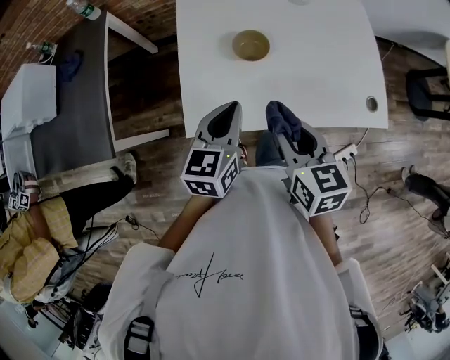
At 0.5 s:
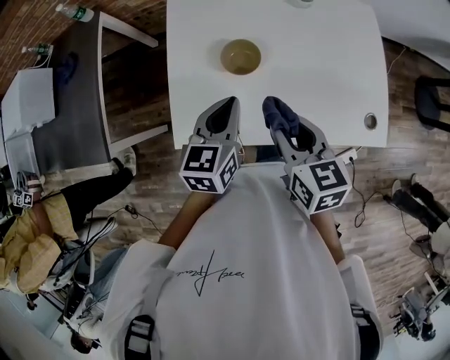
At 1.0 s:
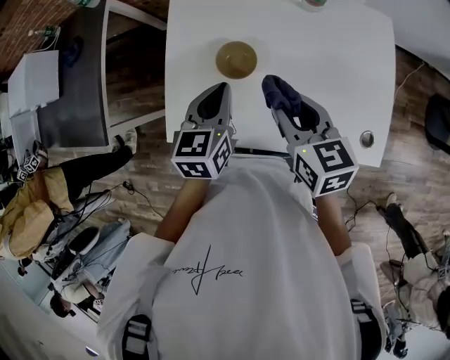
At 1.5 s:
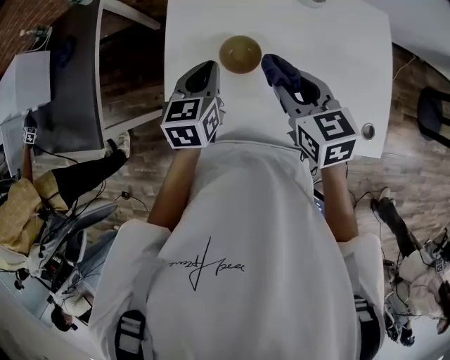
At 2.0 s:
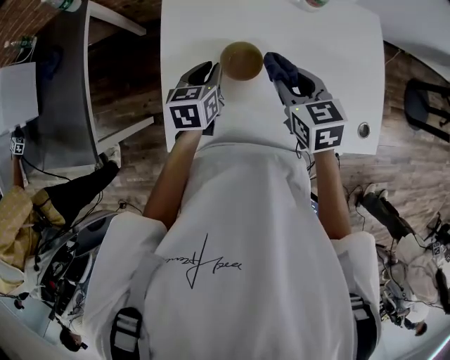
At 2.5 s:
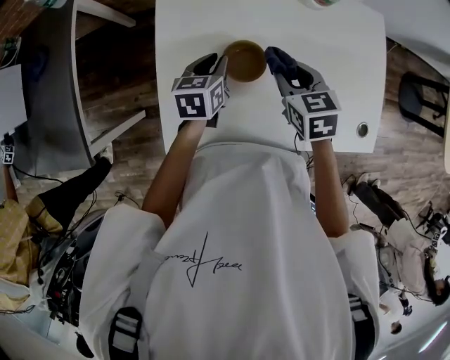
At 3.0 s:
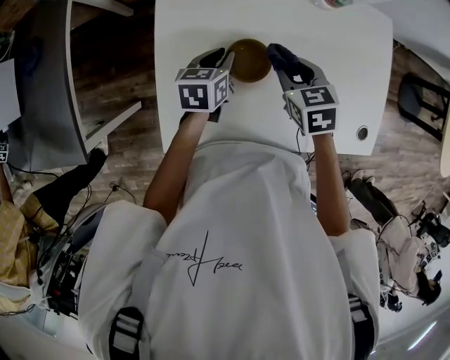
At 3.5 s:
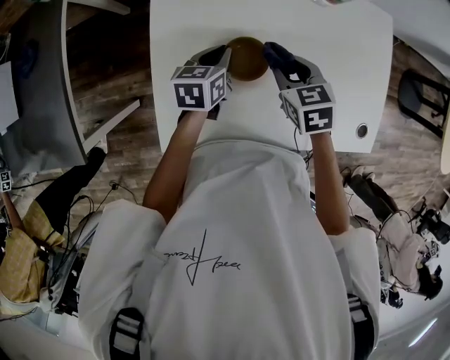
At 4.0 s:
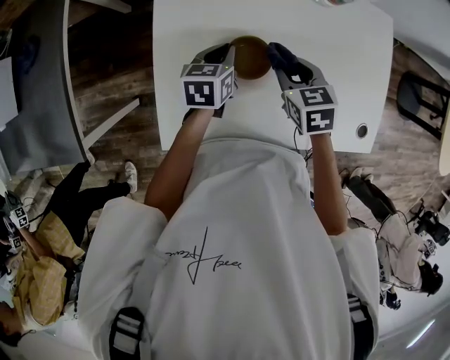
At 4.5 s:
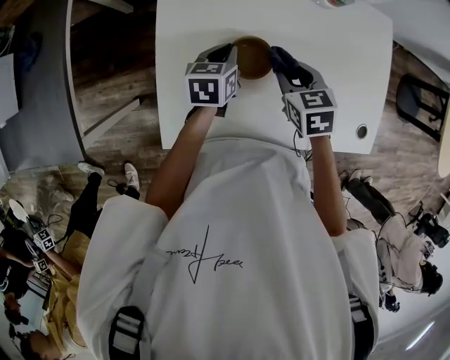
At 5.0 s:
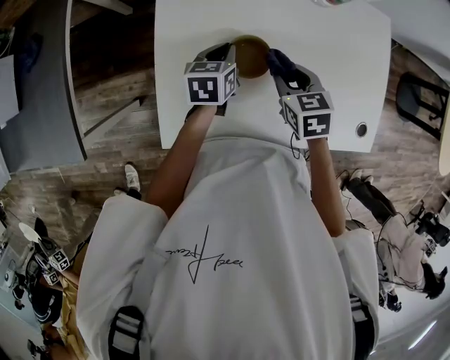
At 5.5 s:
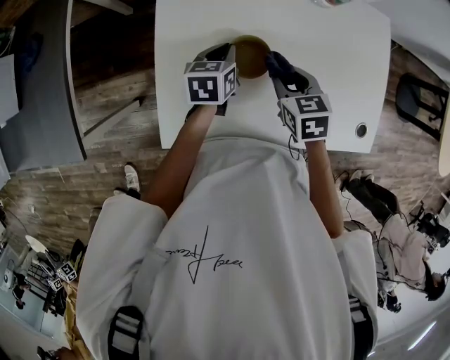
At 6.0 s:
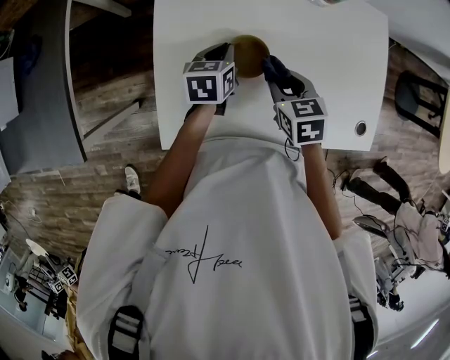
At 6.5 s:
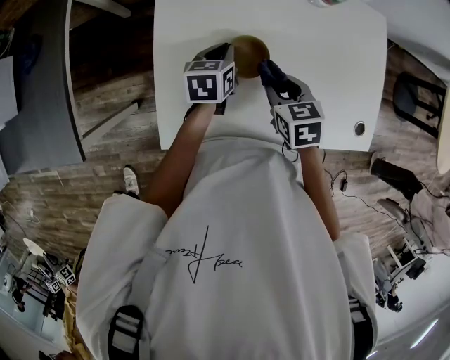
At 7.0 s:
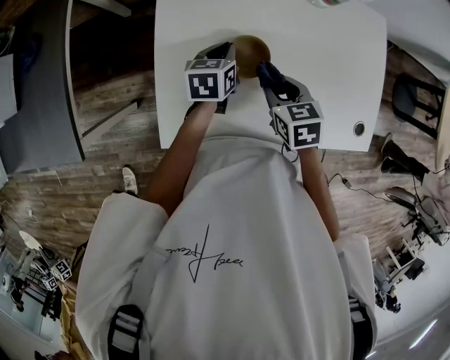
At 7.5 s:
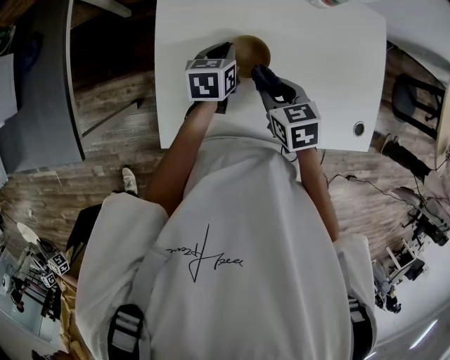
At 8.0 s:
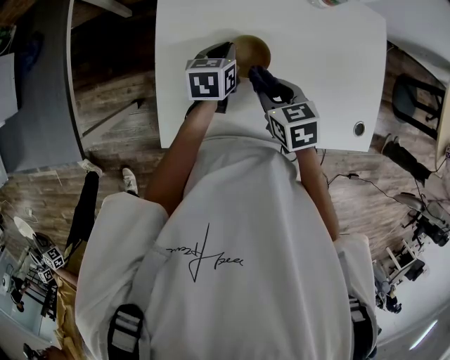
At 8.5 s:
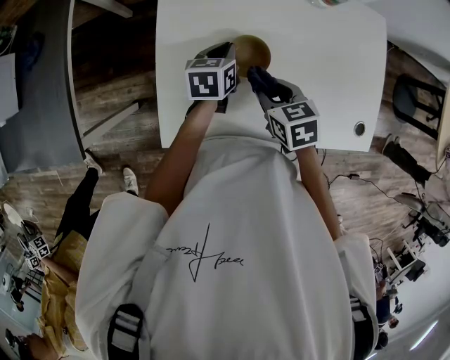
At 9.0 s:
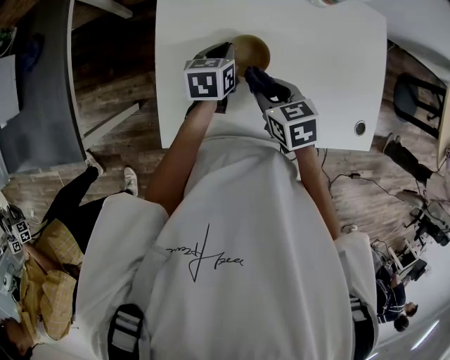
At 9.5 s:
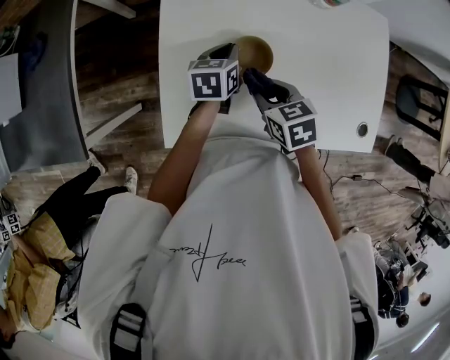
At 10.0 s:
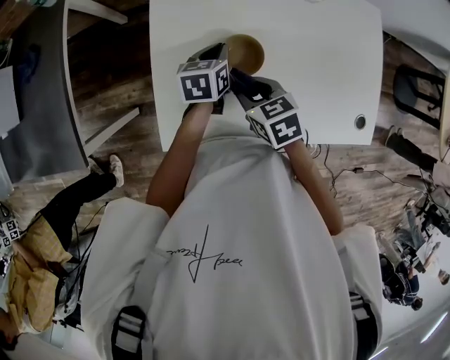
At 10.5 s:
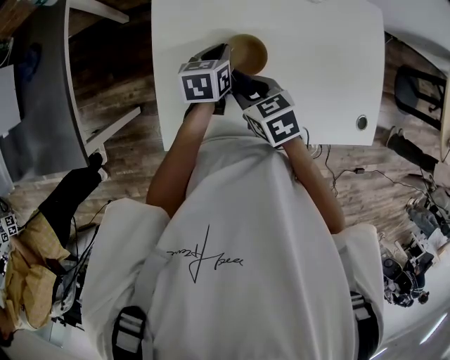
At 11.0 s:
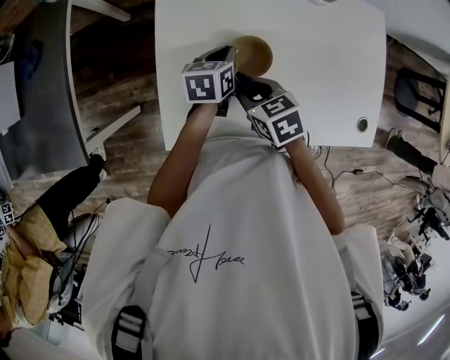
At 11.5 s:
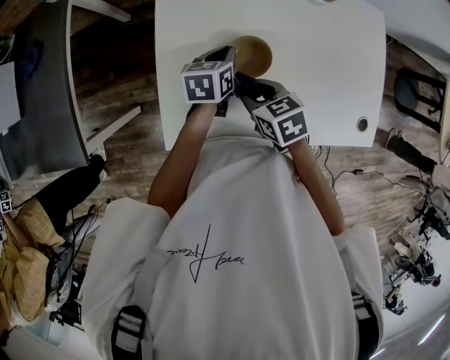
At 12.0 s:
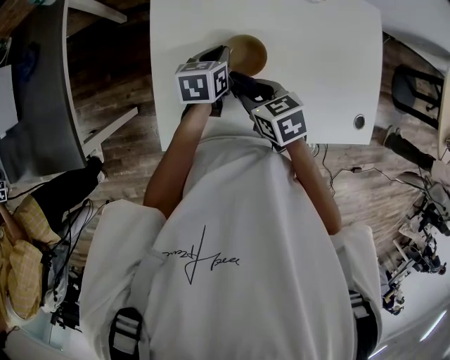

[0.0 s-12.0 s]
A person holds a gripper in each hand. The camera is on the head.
0.0 to 2.0 s: The right gripper moves forward, some 20 cm; the left gripper is displaced forward and downward by about 20 cm.
2.0 to 4.0 s: Both grippers travel together downward, roughly 5 cm.
4.0 to 6.0 s: The grippers make only small movements.
6.0 to 8.0 s: The grippers stay close to where they were, moving slightly.
8.0 to 10.0 s: The right gripper goes roughly 5 cm to the left.
10.0 to 12.0 s: The grippers stay close to where they were, moving slightly.

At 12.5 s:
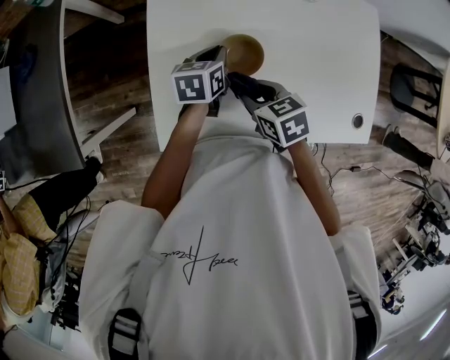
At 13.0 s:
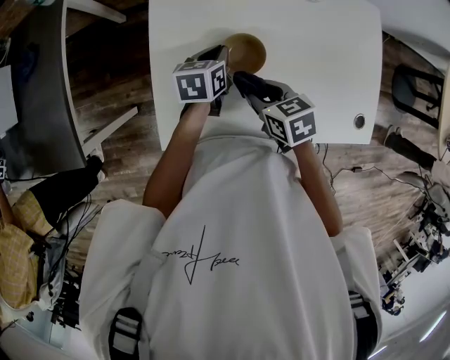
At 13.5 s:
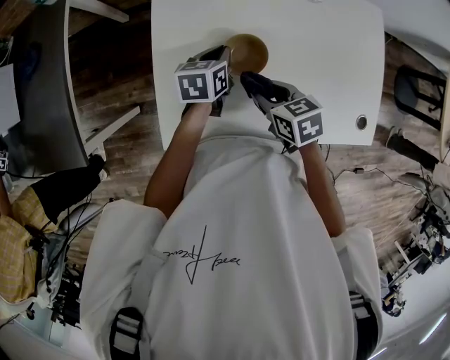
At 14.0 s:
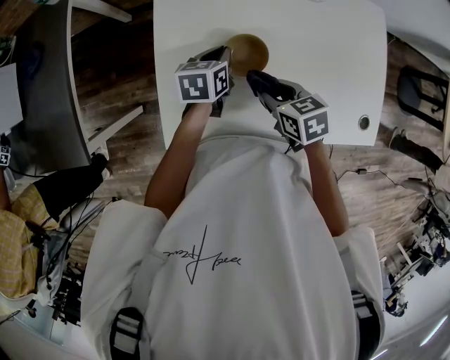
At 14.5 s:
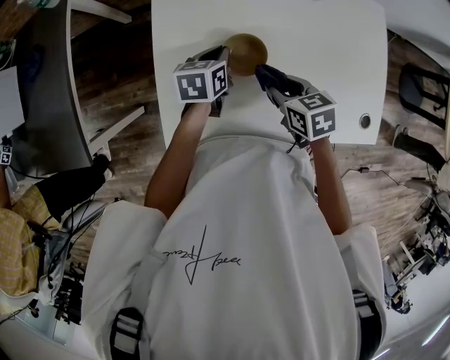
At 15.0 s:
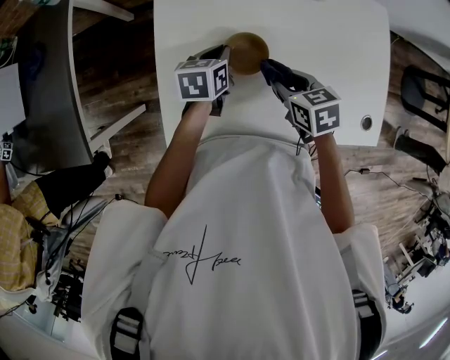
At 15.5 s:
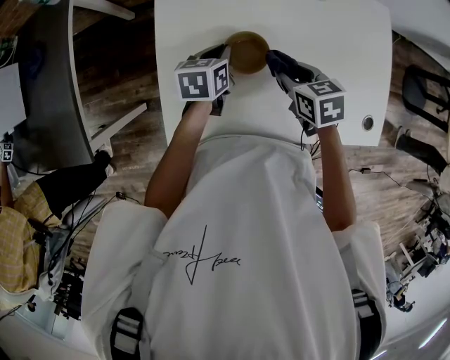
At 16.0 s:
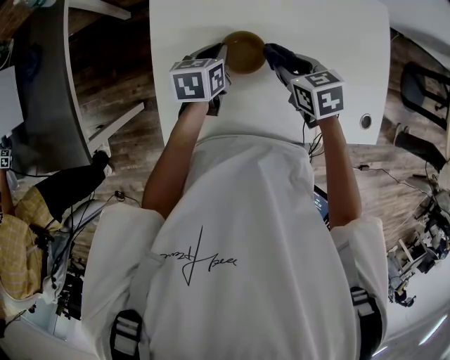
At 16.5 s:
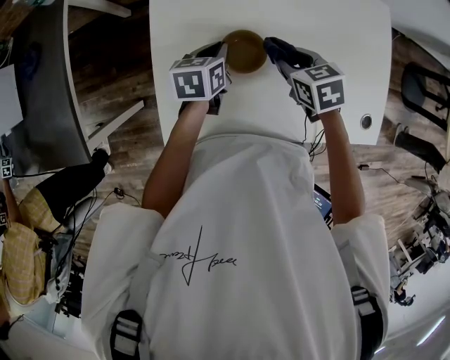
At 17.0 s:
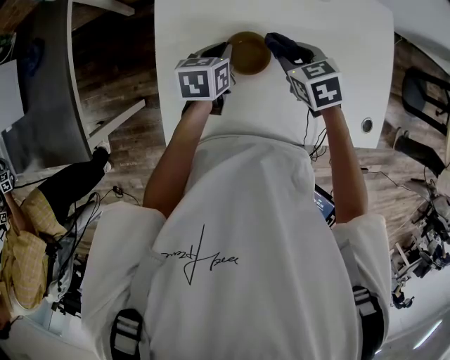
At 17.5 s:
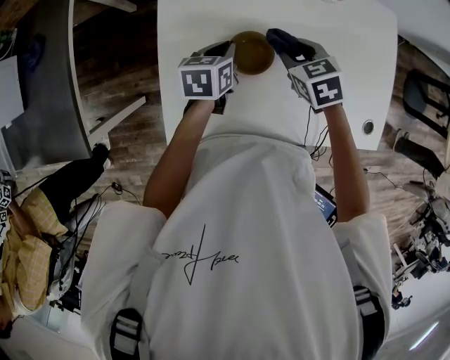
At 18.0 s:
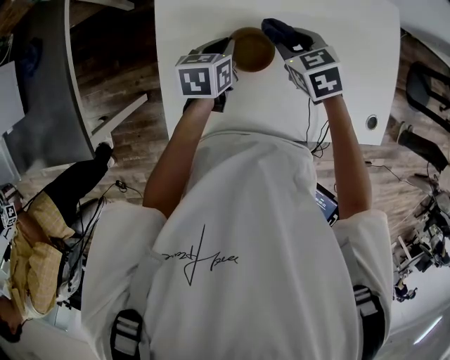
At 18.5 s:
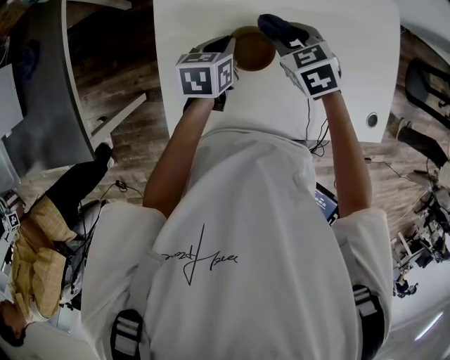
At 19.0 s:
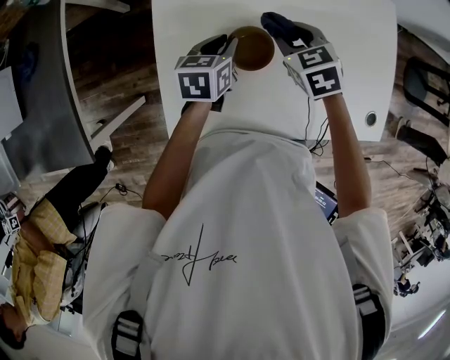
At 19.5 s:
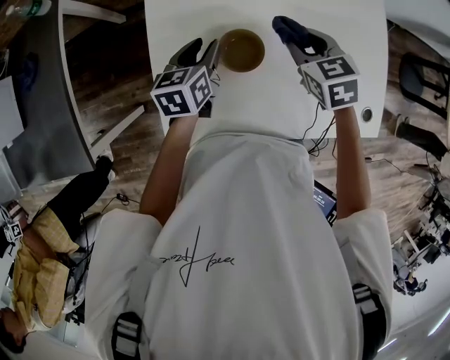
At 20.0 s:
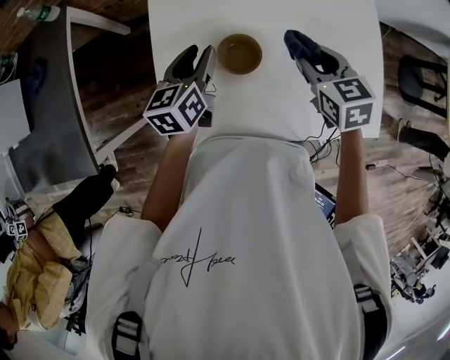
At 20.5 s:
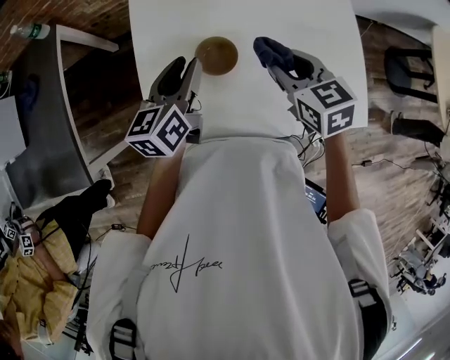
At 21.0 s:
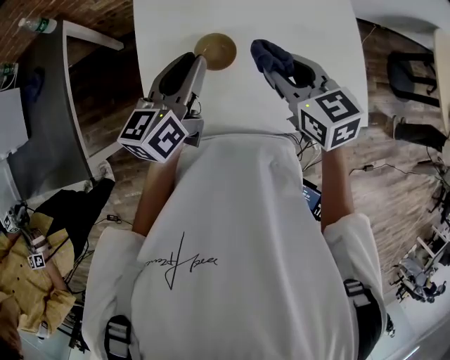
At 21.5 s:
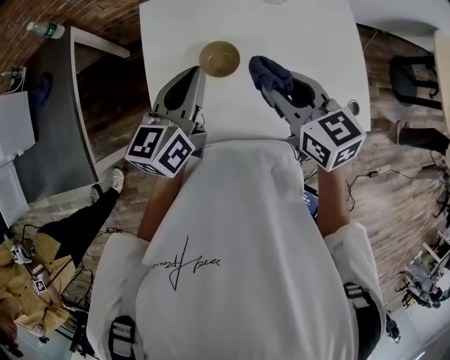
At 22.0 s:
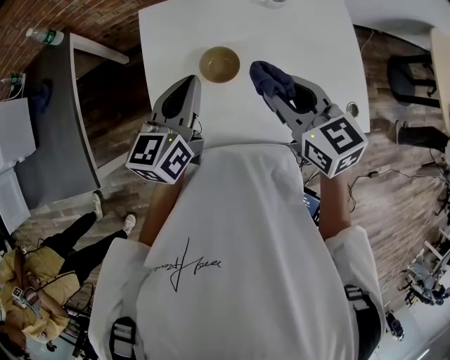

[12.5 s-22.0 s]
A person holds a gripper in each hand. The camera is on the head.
12.5 to 14.5 s: The right gripper is displaced to the right by approximately 5 cm.
14.5 to 16.5 s: The right gripper shifts some 5 cm forward.
16.5 to 18.0 s: The right gripper ends up approximately 5 cm from where it was.
18.0 to 20.0 s: The left gripper shifts some 10 cm upward, turns by approximately 20 degrees, and opens up, while the right gripper goes some 10 cm upward and to the right.
20.0 to 22.0 s: The grippers both shift upward and backward by about 15 cm. The left gripper closes.

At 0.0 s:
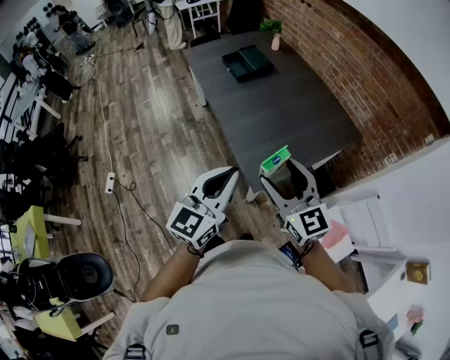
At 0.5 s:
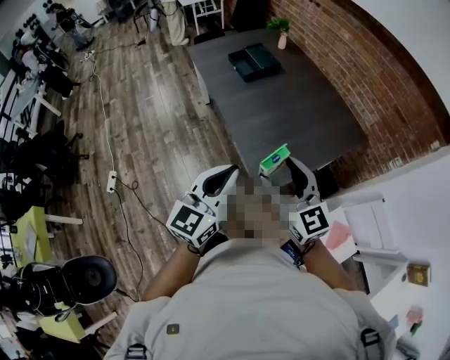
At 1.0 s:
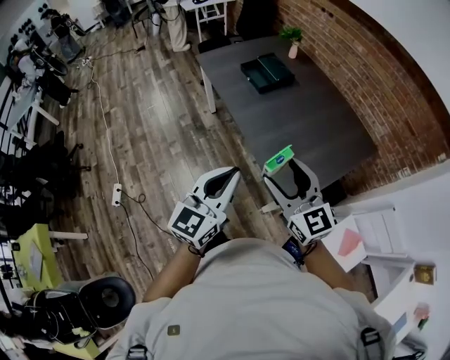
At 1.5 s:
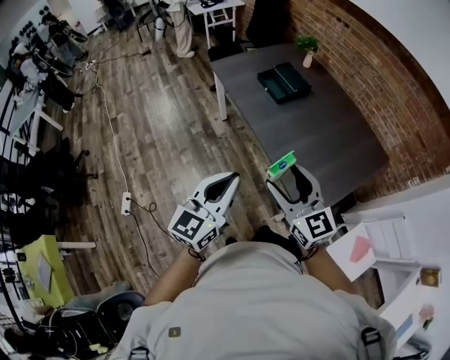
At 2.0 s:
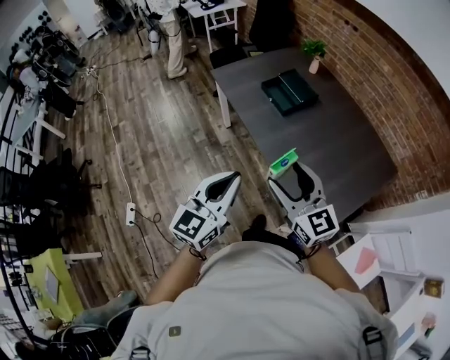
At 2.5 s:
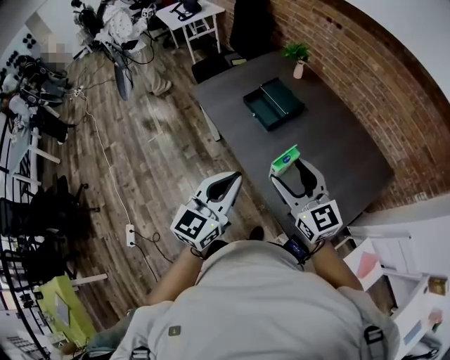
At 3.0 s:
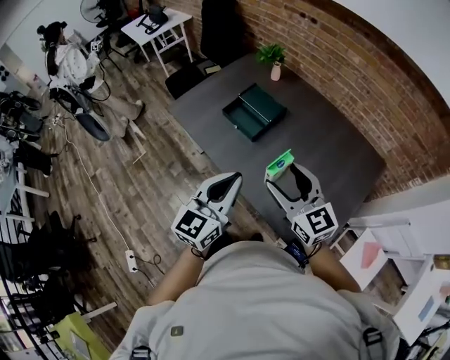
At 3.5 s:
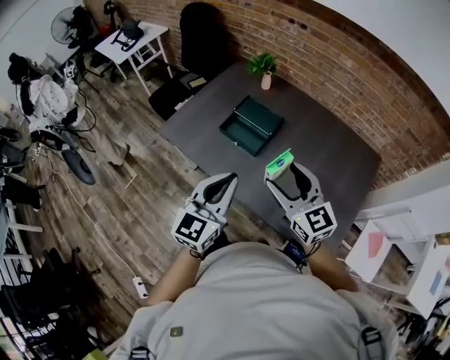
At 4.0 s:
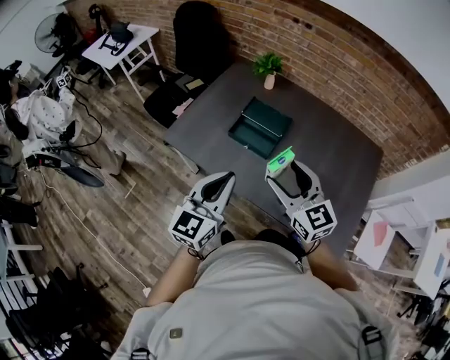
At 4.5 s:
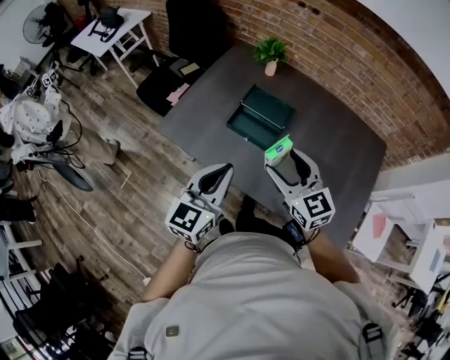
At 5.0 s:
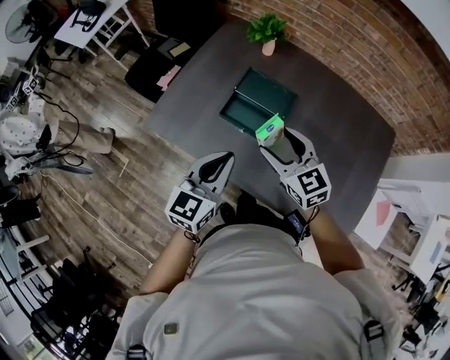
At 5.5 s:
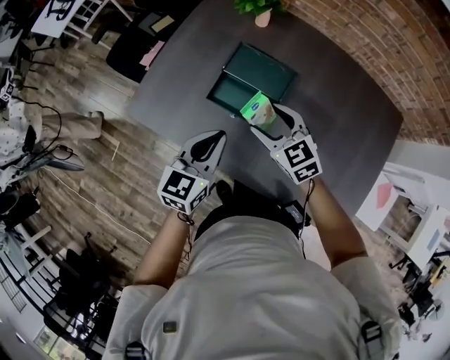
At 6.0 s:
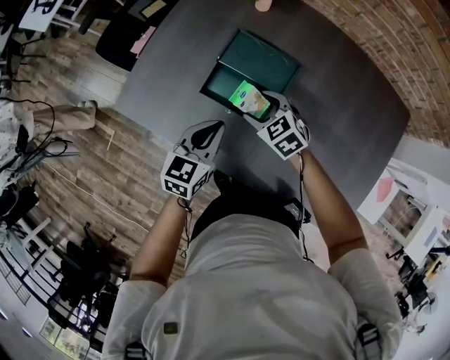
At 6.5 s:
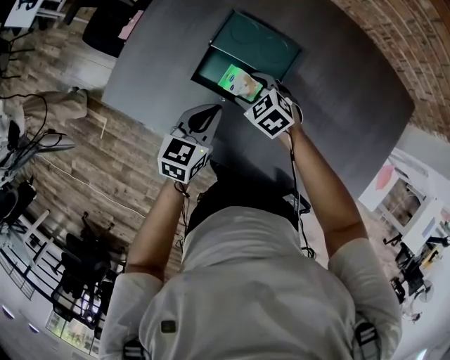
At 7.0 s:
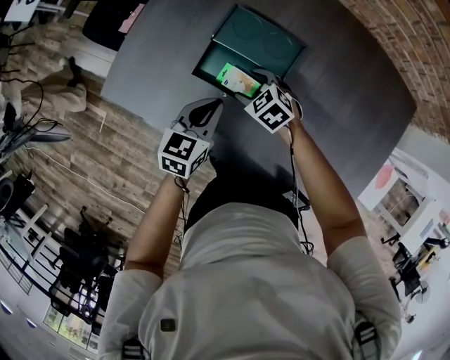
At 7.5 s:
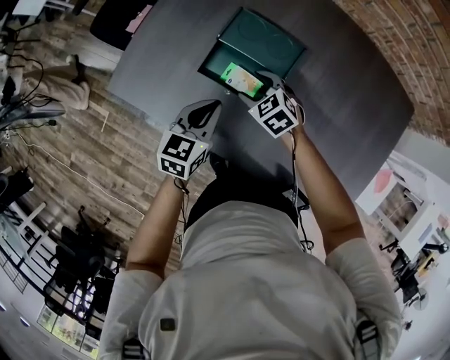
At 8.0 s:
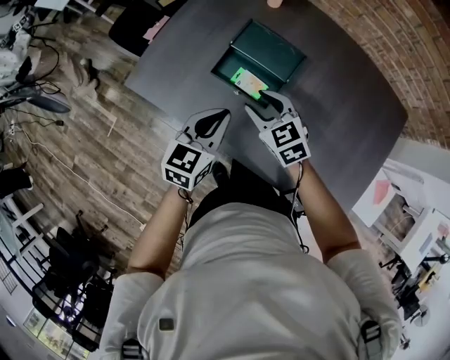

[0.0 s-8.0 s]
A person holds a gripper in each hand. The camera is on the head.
0.0 to 2.0 s: Both grippers travel together to the left and forward, about 35 cm.
2.0 to 4.0 s: The right gripper moves roughly 35 cm, and changes its angle by approximately 30 degrees. The left gripper changes place by approximately 40 cm, and rotates approximately 30 degrees.
4.0 to 6.0 s: Both grippers travel together downward and forward, some 40 cm. The left gripper swivels about 30 degrees. The right gripper tips its fingers downward by approximately 40 degrees.
6.0 to 8.0 s: Both grippers move upward and backward, approximately 10 cm.
